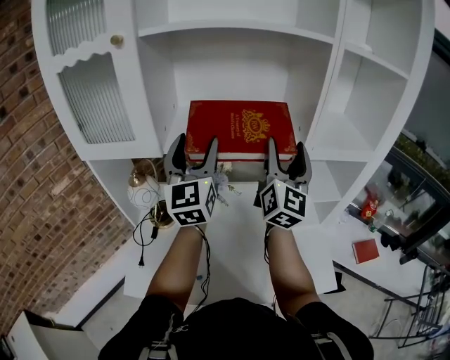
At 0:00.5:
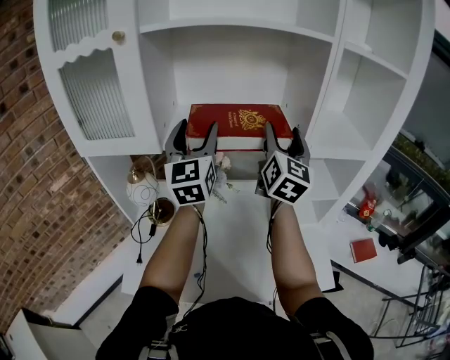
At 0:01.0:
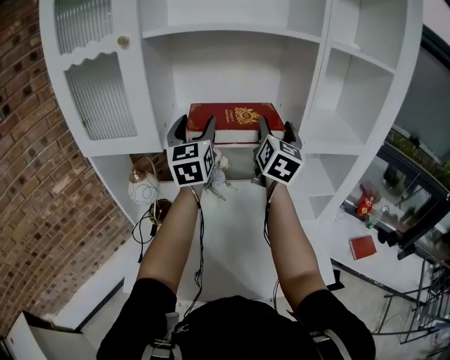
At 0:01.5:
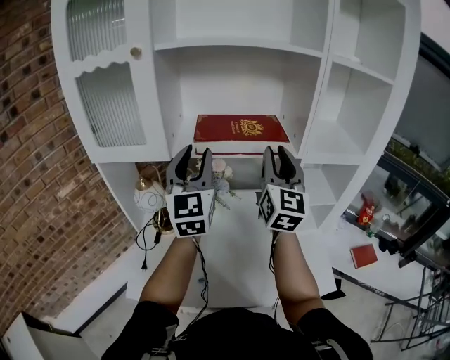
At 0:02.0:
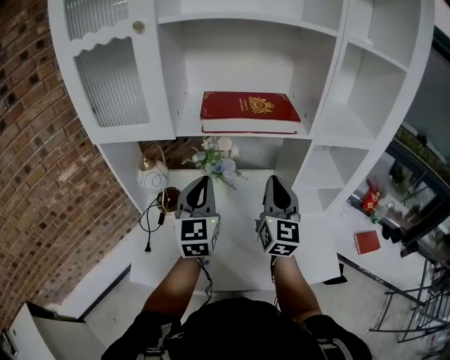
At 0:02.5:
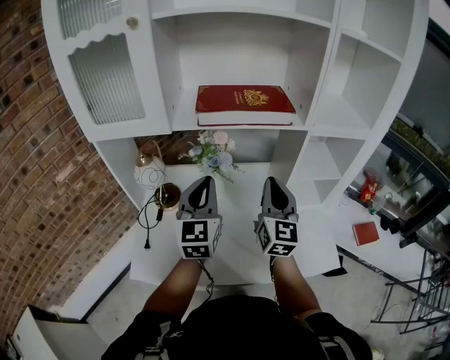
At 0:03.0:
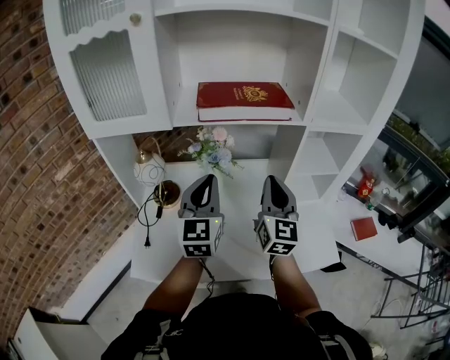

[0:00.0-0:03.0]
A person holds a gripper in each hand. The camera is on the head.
0:00.0 to 0:01.5: The right gripper changes place by approximately 5 cm, and closes up, while the left gripper shifts roughly 5 cm backward, and closes up.
0:01.5 to 0:03.0: The two grippers go about 15 cm downward and backward. The left gripper closes.

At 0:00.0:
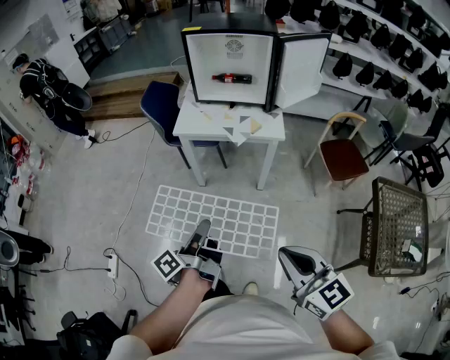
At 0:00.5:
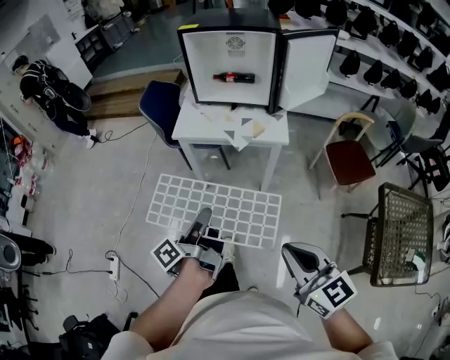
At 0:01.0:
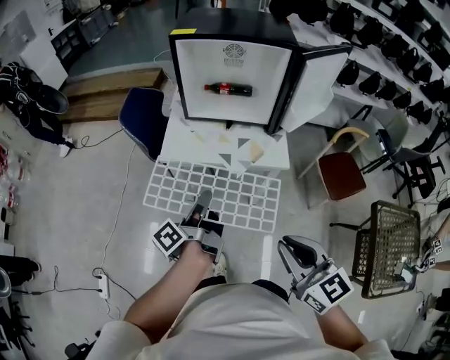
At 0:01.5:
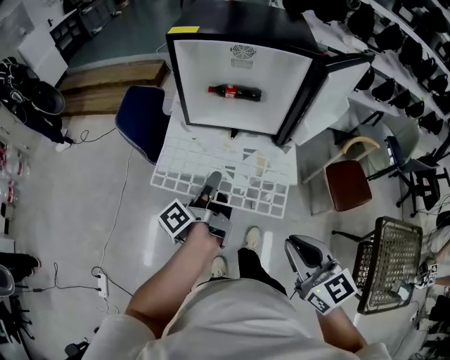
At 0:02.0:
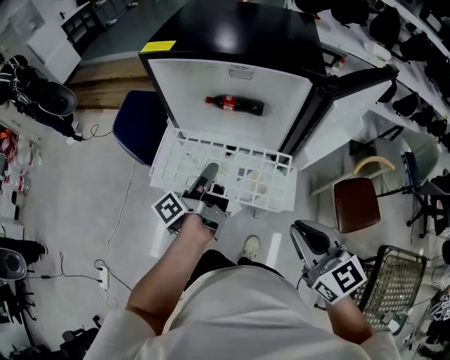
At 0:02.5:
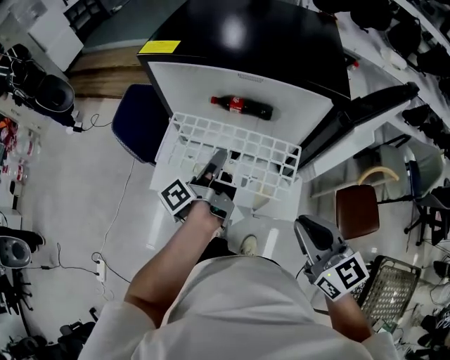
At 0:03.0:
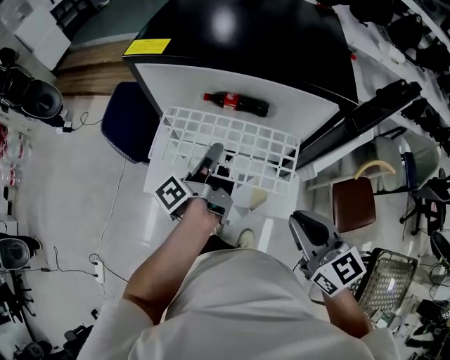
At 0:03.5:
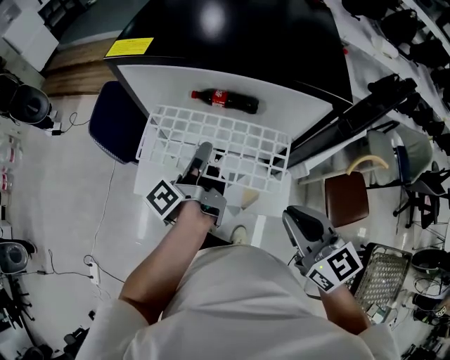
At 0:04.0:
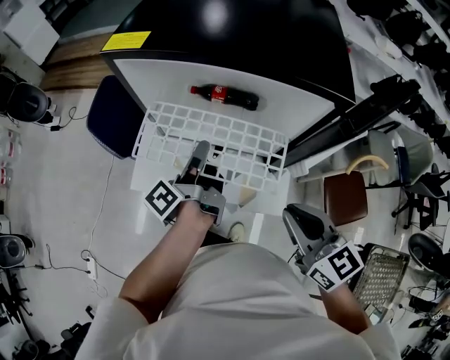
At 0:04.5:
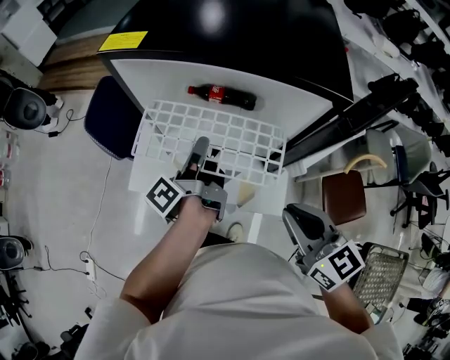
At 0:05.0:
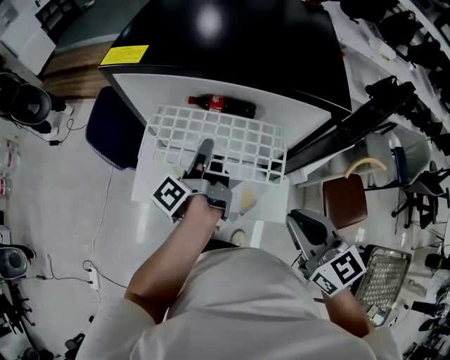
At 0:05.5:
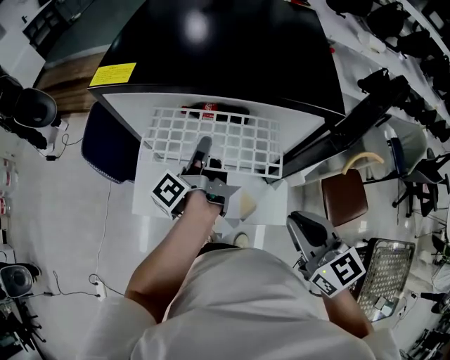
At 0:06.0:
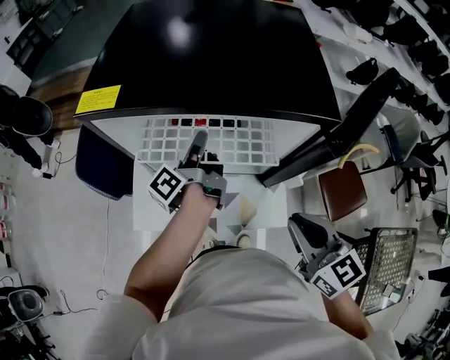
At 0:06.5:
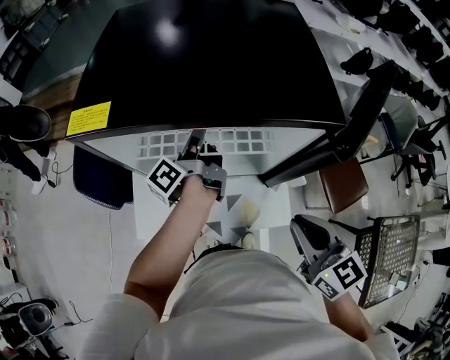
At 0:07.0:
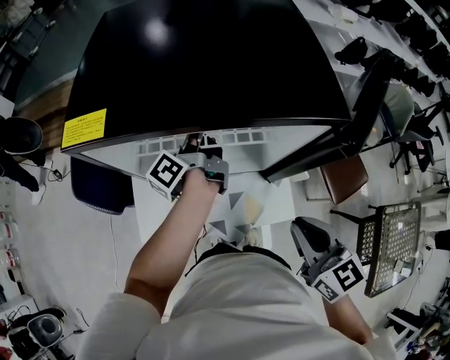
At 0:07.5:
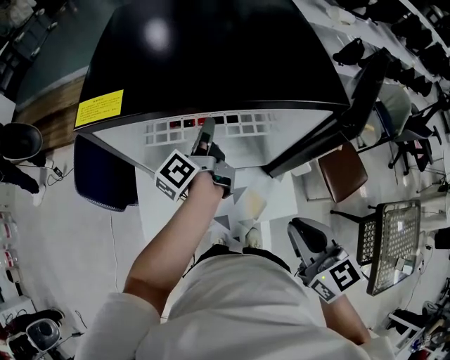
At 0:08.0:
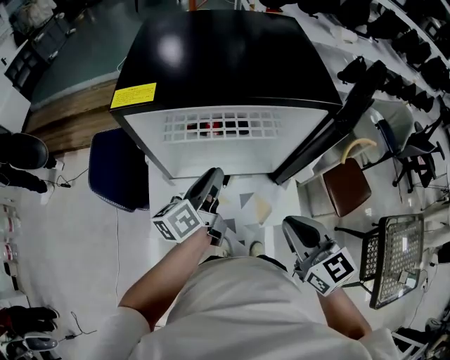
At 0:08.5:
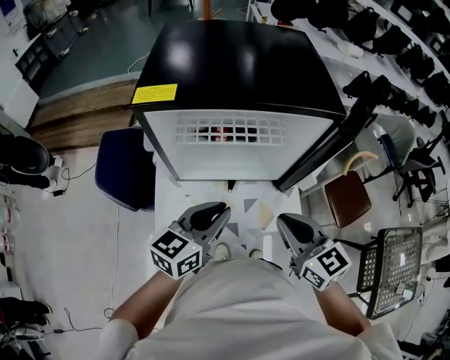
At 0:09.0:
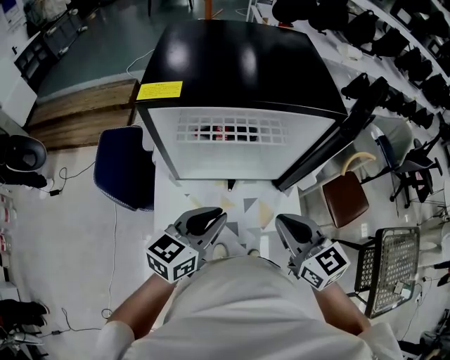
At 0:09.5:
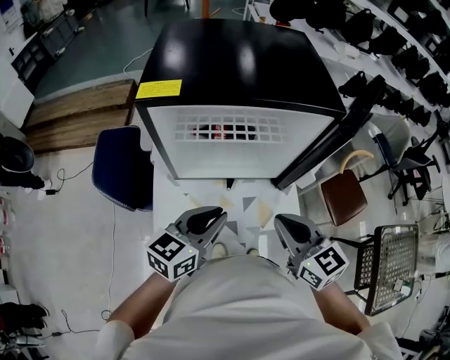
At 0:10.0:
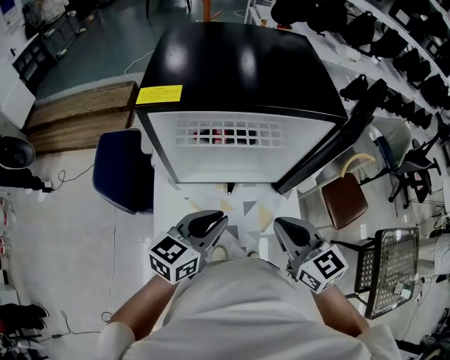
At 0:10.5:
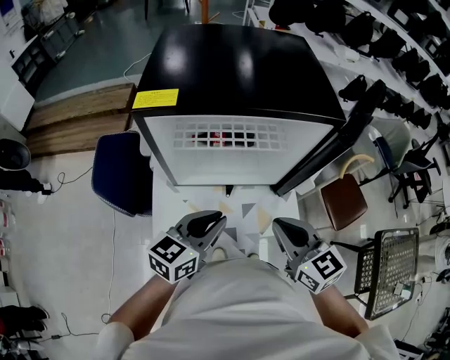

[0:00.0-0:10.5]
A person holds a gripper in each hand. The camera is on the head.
0:00.0 to 0:02.0: The right gripper ends up roughly 50 cm from where it was.
0:02.0 to 0:04.0: The right gripper moves some 10 cm.
0:06.5 to 0:08.5: The right gripper shifts by about 10 cm.

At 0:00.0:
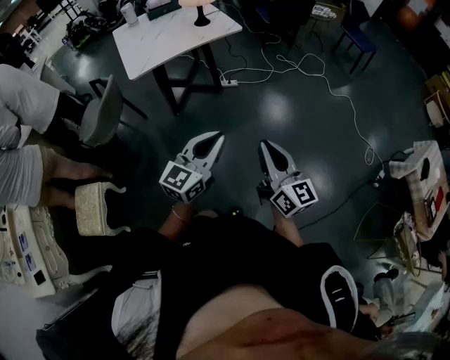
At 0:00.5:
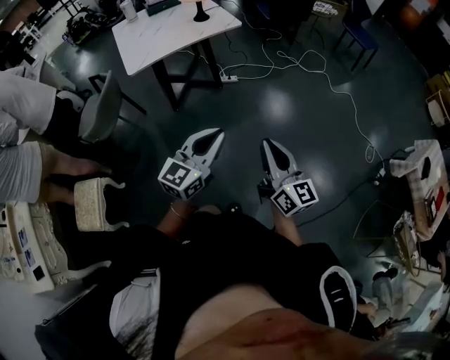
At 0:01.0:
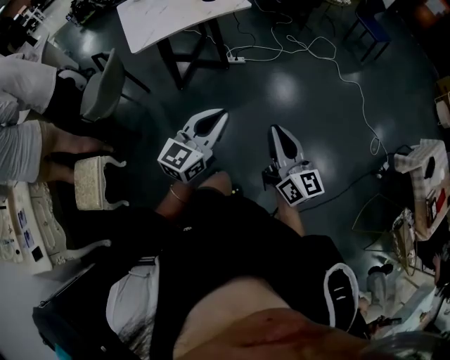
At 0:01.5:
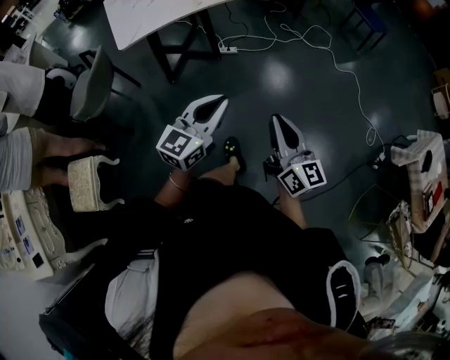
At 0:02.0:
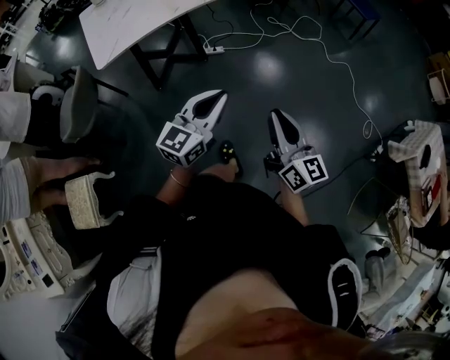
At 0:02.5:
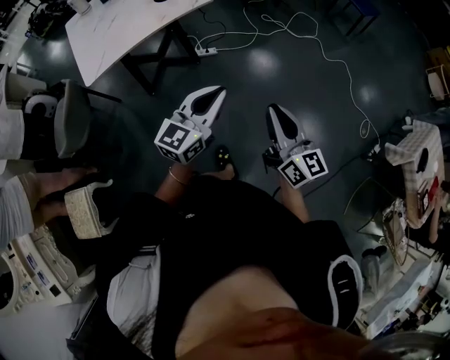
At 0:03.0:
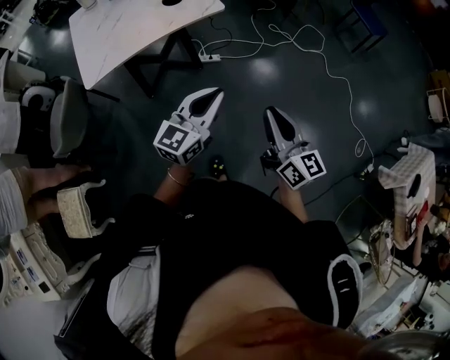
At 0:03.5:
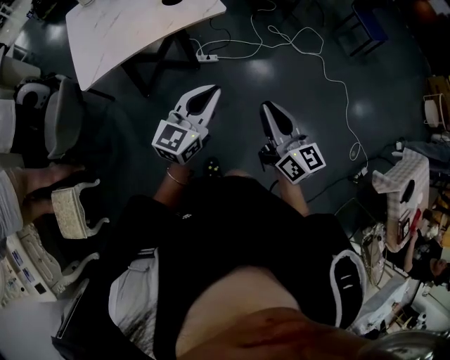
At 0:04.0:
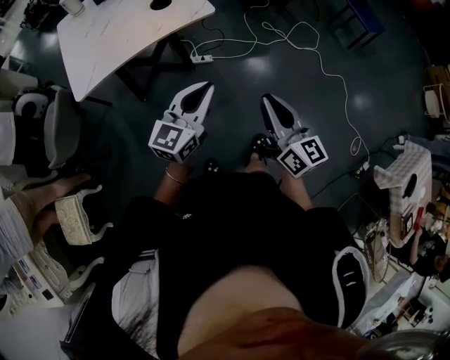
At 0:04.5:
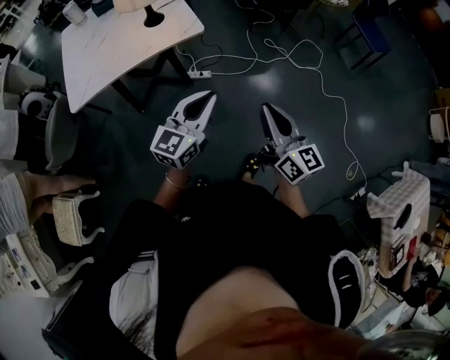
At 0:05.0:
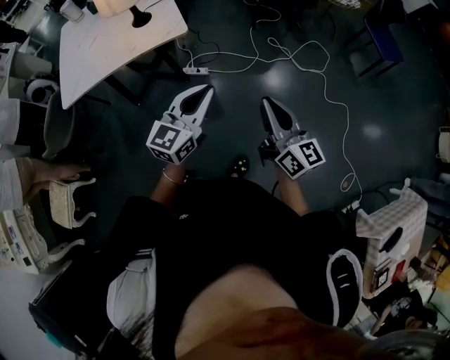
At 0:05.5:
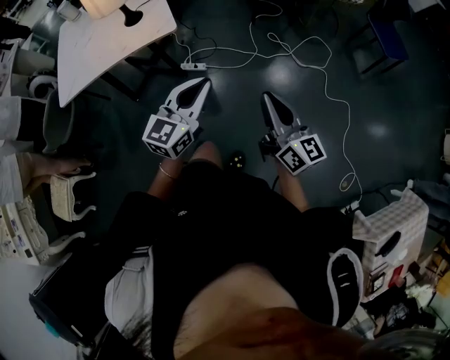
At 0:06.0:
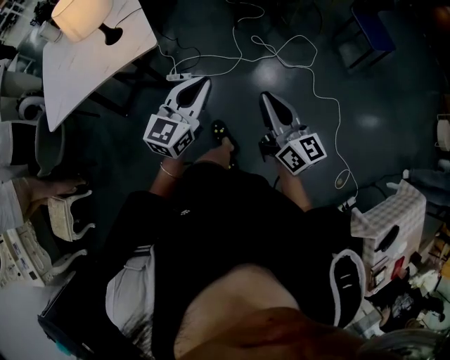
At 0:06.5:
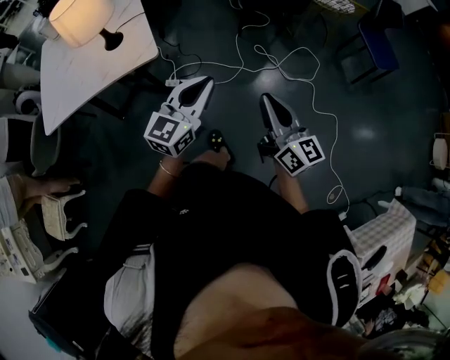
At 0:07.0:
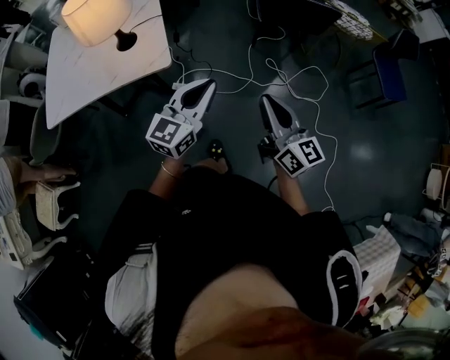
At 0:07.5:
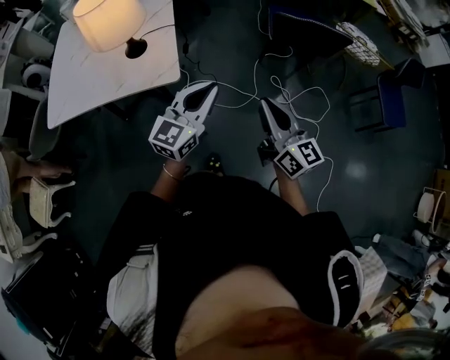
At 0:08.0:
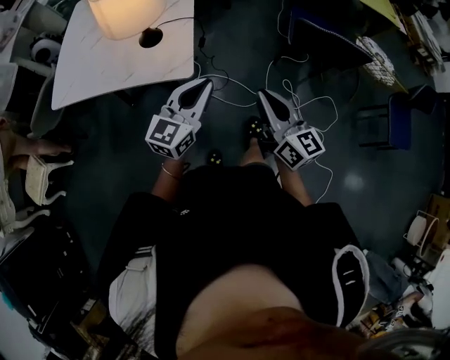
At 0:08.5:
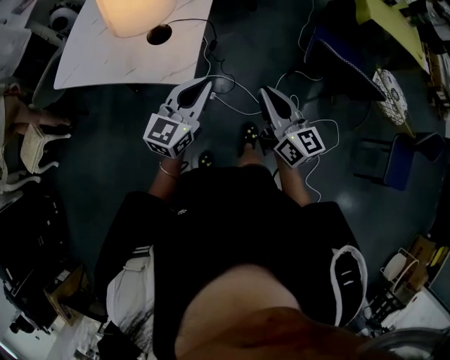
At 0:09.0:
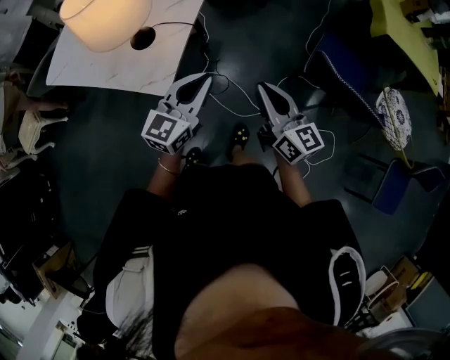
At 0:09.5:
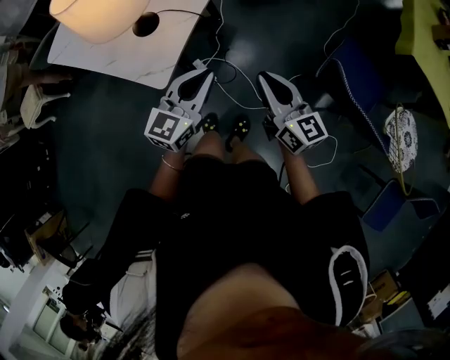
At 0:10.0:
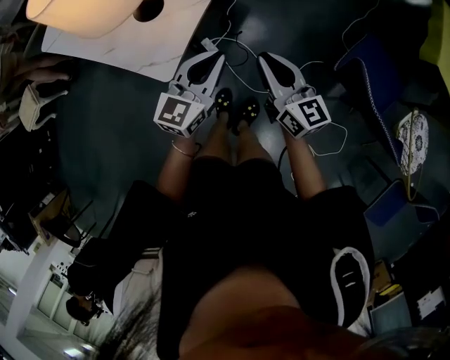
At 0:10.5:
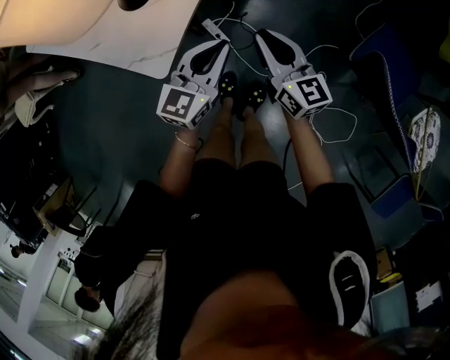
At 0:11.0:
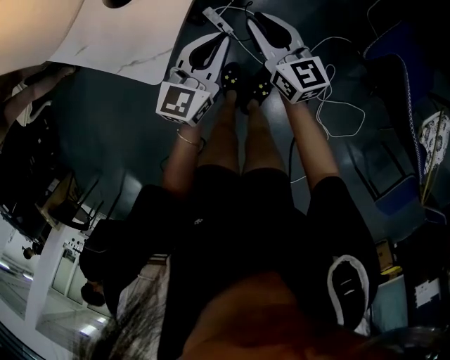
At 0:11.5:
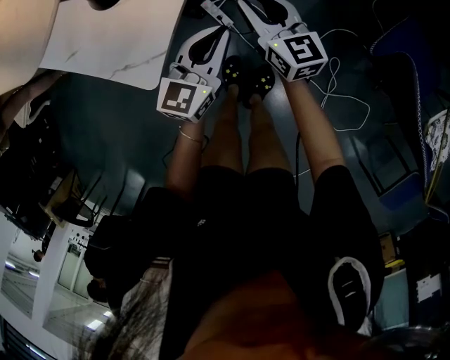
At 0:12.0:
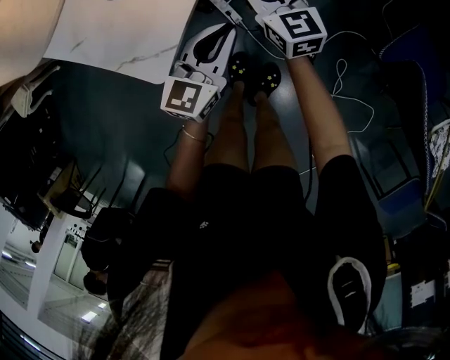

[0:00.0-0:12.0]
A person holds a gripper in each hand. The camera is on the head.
0:00.0 to 0:02.0: The right gripper moves forward and to the right, about 15 cm, while the left gripper shifts about 15 cm forward.
0:02.0 to 0:04.0: The two grippers go roughly 20 cm forward.
0:04.0 to 0:06.0: Both grippers move to the right and forward, some 30 cm.
0:06.0 to 0:08.0: The left gripper heads forward and to the left, covering some 25 cm, and changes its angle by about 20 degrees. Meanwhile the right gripper is displaced forward by some 25 cm, and turns by roughly 30 degrees.
0:08.0 to 0:10.0: The left gripper ends up some 25 cm from where it was, and turns by approximately 30 degrees, while the right gripper shifts by some 30 cm, and swivels some 30 degrees.
0:10.0 to 0:12.0: The left gripper travels downward by approximately 15 cm, while the right gripper heads downward, forward and to the left, covering roughly 25 cm, and opens its fingers.

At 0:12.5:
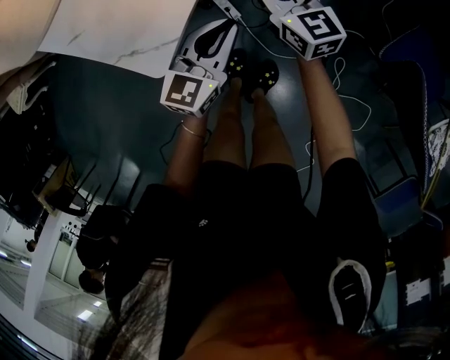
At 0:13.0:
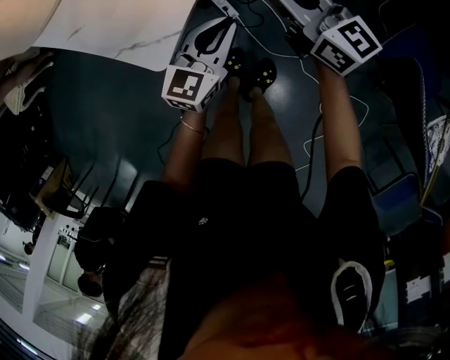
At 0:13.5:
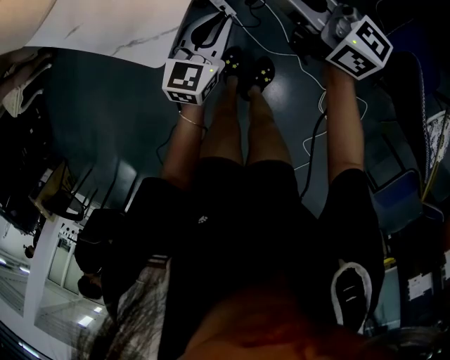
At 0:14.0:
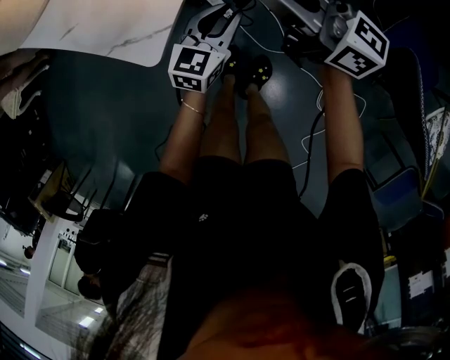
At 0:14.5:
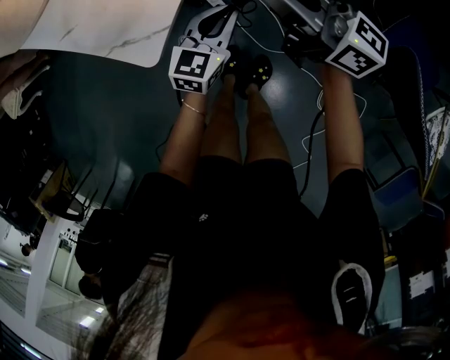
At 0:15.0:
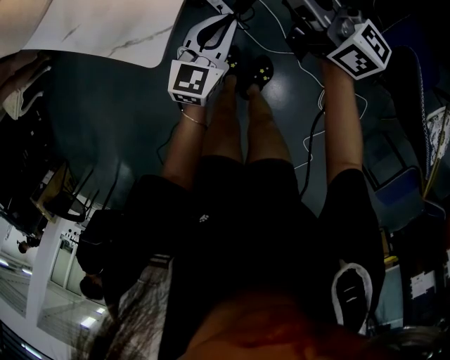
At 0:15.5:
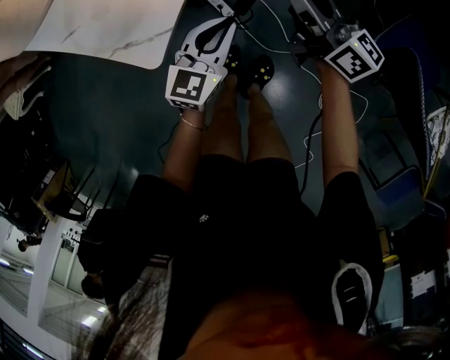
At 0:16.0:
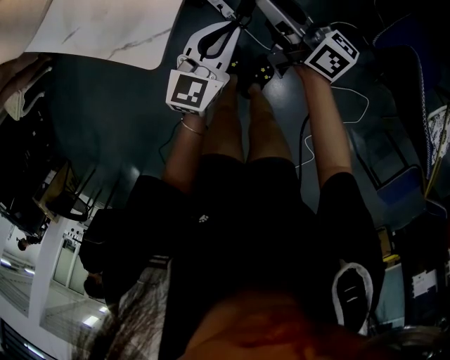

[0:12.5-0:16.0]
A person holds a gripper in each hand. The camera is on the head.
0:12.5 to 0:14.5: The right gripper goes approximately 15 cm upward and backward, and rotates some 40 degrees.
0:14.5 to 0:16.0: The left gripper shifts by approximately 5 cm, while the right gripper travels downward by some 10 cm, swivels about 20 degrees, and opens up.
